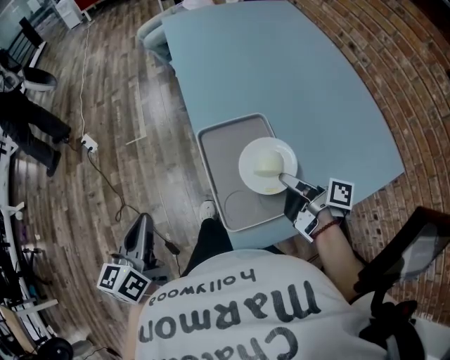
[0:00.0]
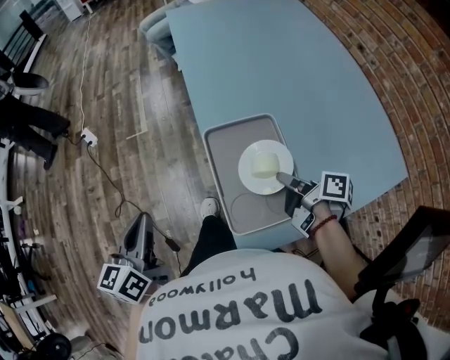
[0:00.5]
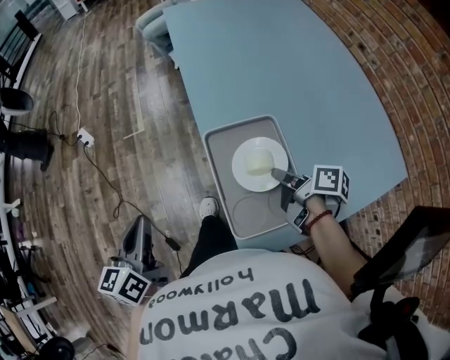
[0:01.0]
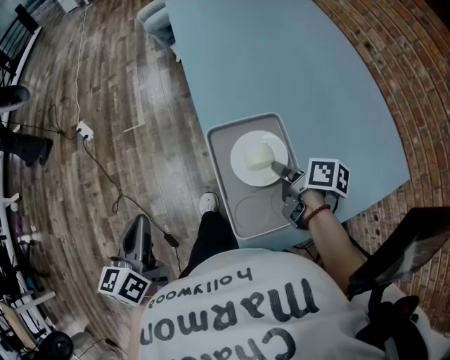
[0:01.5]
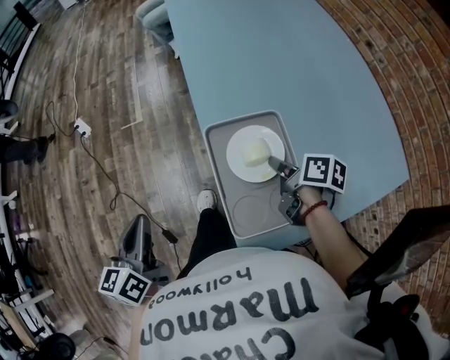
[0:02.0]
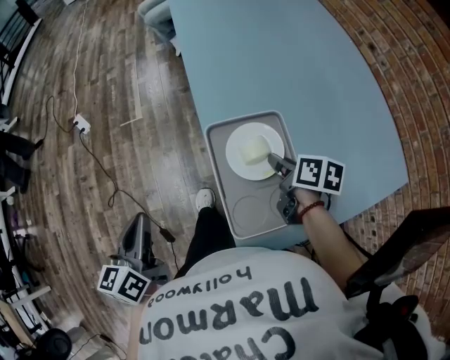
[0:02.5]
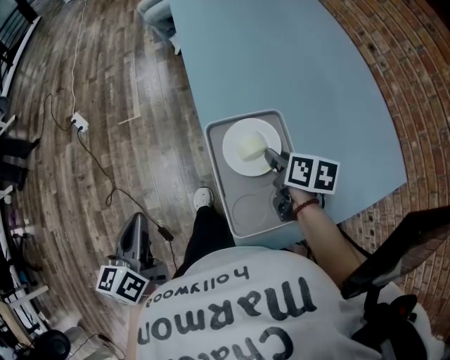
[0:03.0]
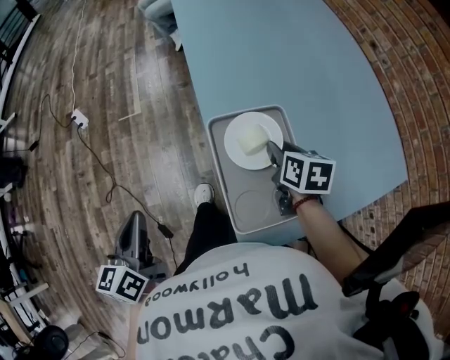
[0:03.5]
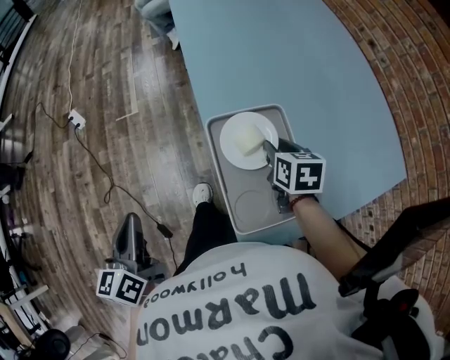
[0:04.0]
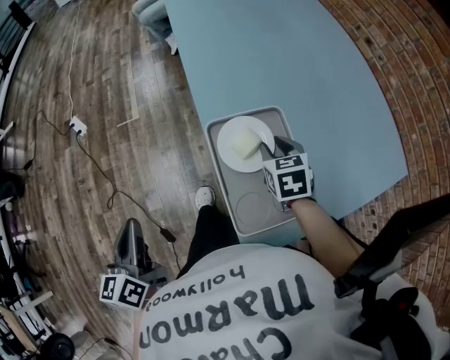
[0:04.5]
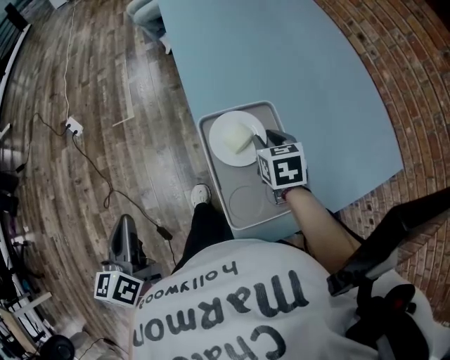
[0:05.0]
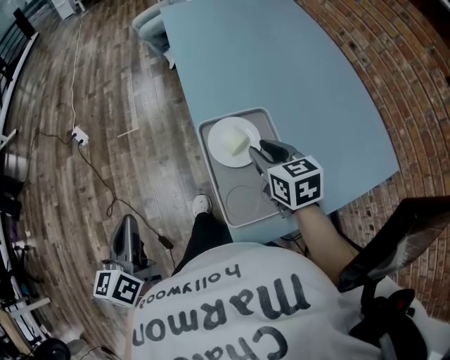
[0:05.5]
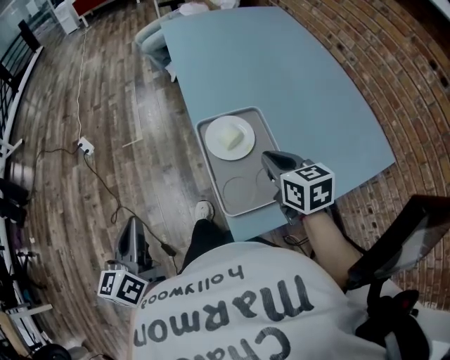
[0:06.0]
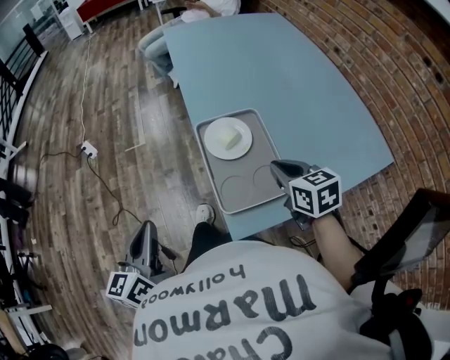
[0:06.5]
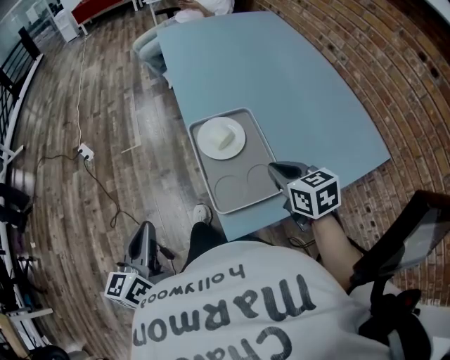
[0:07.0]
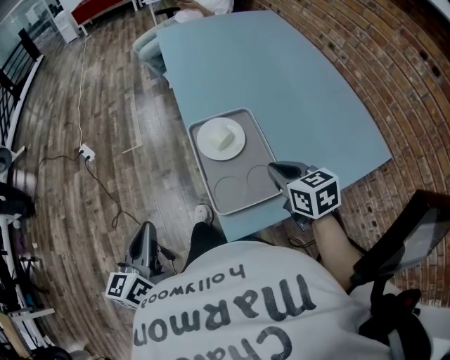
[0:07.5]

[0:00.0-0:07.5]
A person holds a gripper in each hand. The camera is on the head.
0:00.0 to 0:02.0: The left gripper moves about 5 cm; the right gripper shifts some 10 cm forward, and rotates some 30 degrees.
0:02.0 to 0:04.0: The right gripper turns by roughly 40 degrees.
0:04.0 to 0:05.5: The right gripper is displaced upward by some 10 cm, and changes its angle by roughly 20 degrees.
0:05.5 to 0:07.5: Both grippers move backward and to the right, some 10 cm. The right gripper closes up.

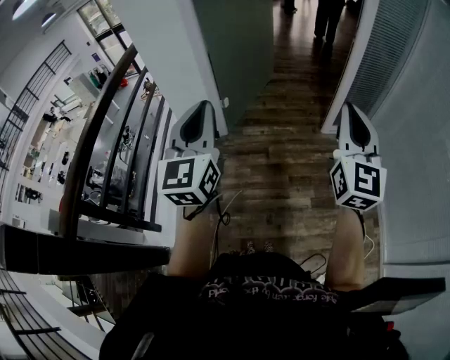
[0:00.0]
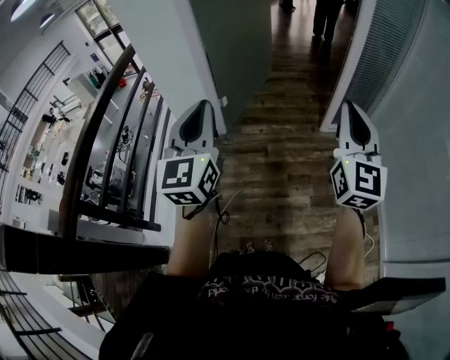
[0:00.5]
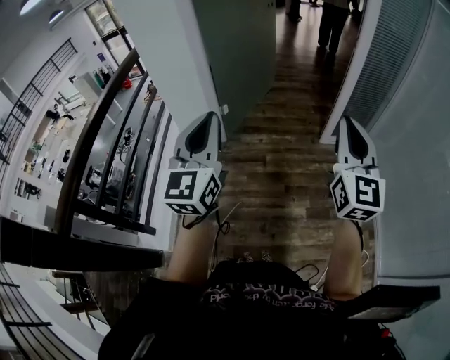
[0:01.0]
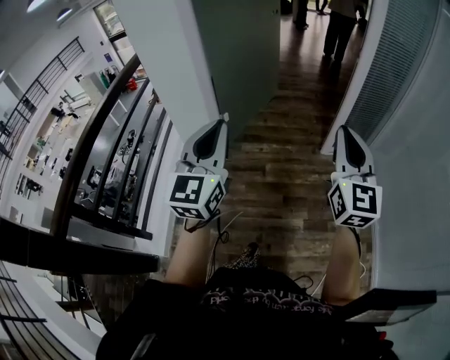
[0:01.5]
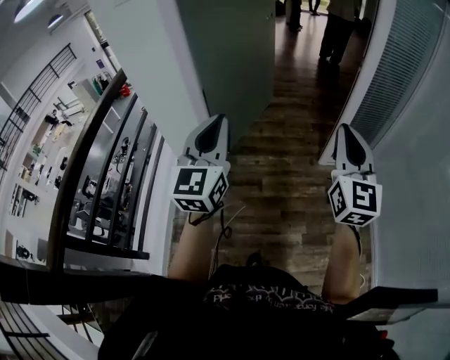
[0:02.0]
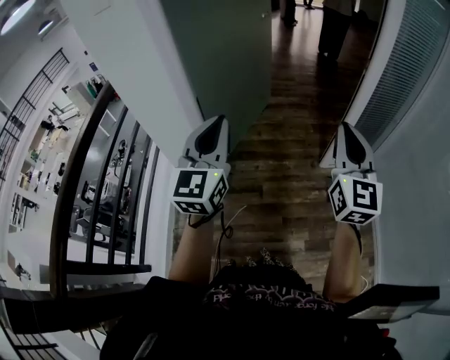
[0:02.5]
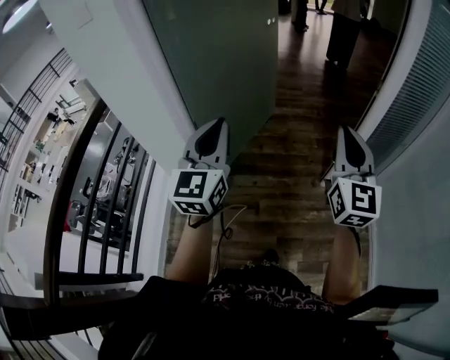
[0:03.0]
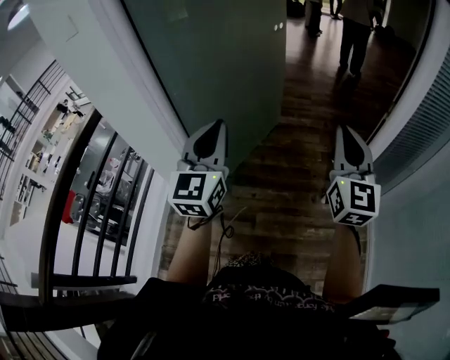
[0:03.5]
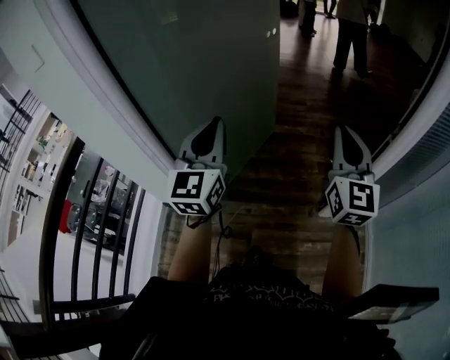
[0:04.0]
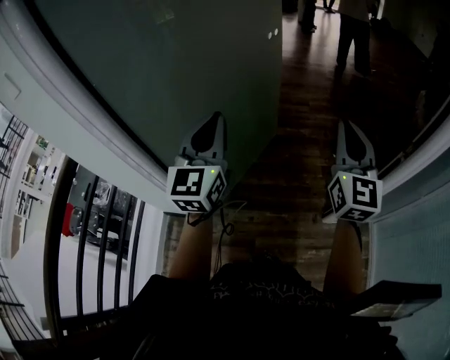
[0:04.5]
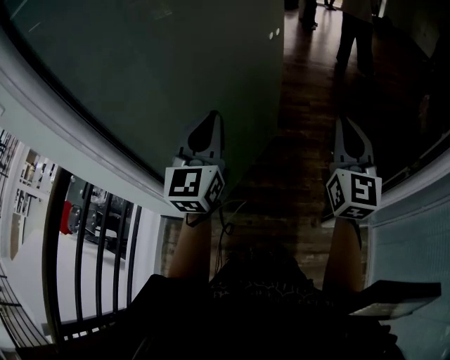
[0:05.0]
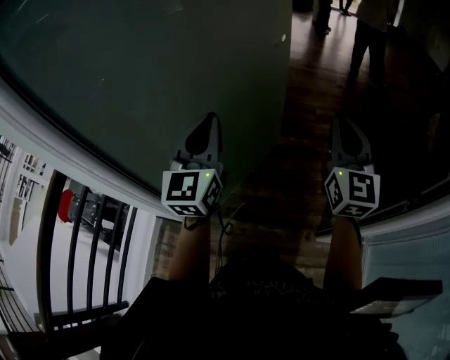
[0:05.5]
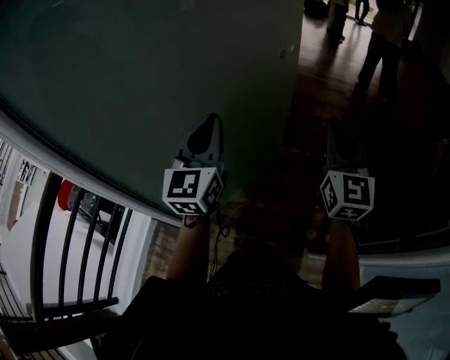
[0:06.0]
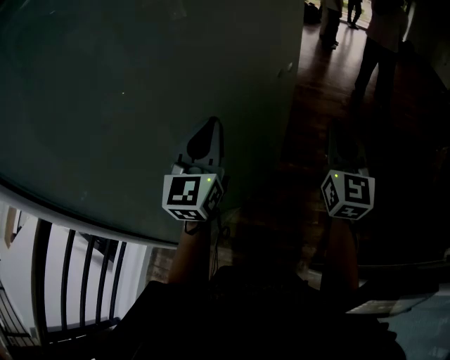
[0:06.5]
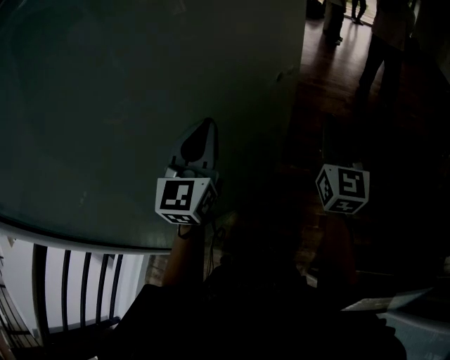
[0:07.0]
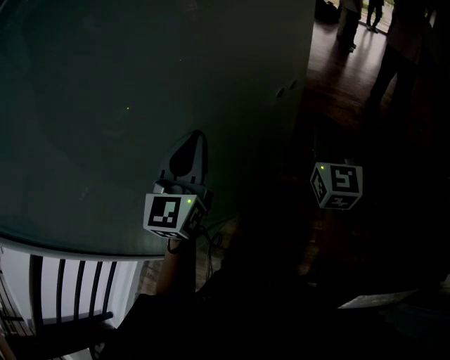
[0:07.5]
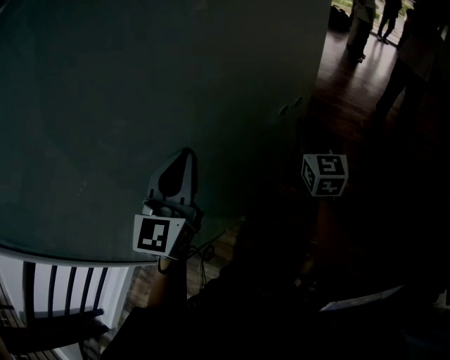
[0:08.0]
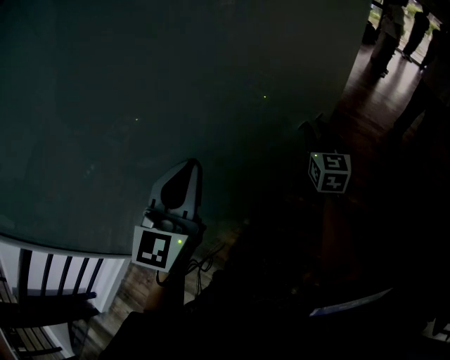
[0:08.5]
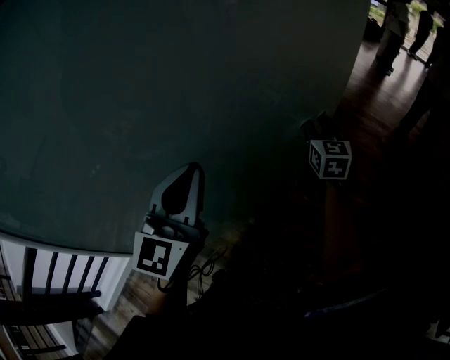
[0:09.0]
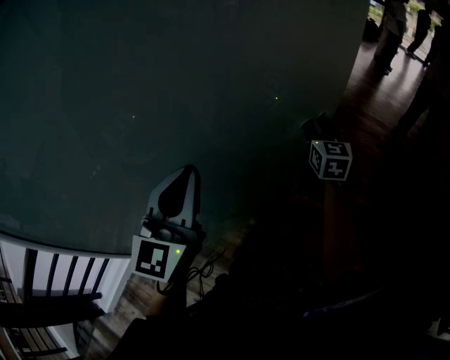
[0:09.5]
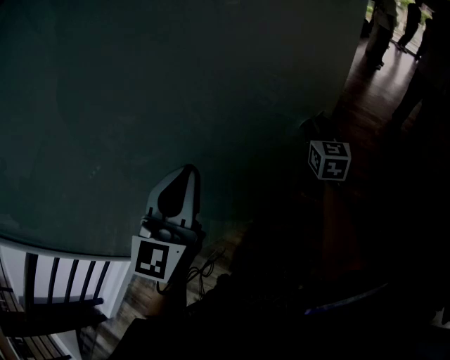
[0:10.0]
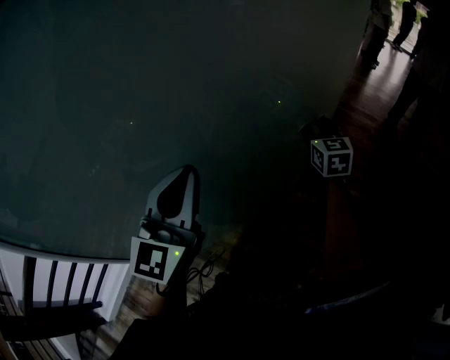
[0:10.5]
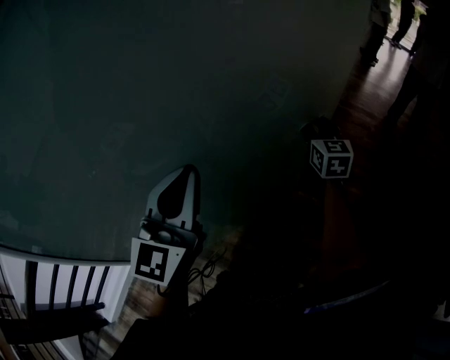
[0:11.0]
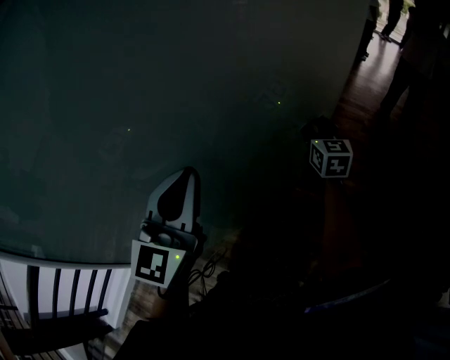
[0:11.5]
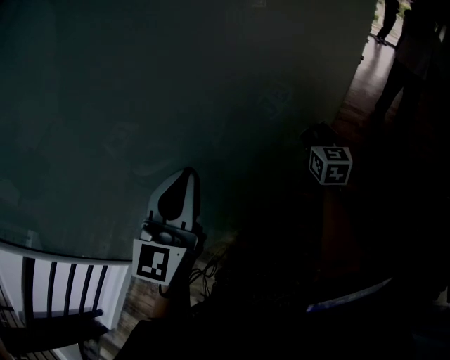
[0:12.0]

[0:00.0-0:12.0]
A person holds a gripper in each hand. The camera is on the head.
0:00.0 to 0:02.0: Both grippers move forward, about 15 cm.
0:02.0 to 0:04.0: Both grippers are carried forward, roughly 50 cm.
0:04.0 to 0:06.0: The two grippers go roughly 25 cm forward.
0:06.0 to 0:08.0: The right gripper moves forward, some 40 cm, and opens. The left gripper is displaced forward by roughly 25 cm.
0:08.0 to 0:10.0: The right gripper heads forward and downward, covering approximately 10 cm.
0:10.0 to 0:12.0: The right gripper travels backward by roughly 5 cm.

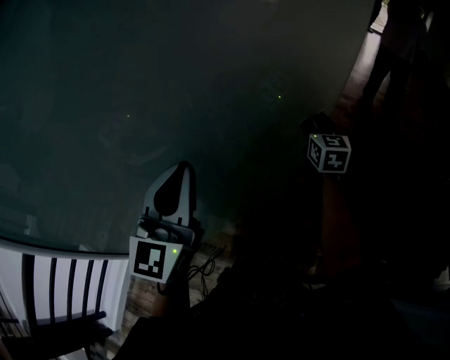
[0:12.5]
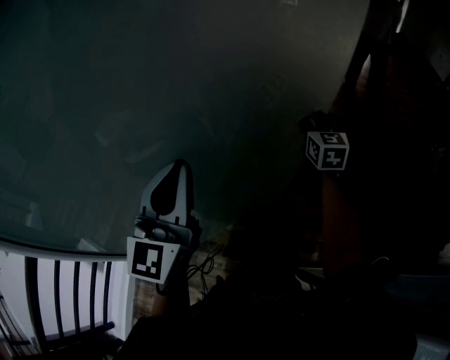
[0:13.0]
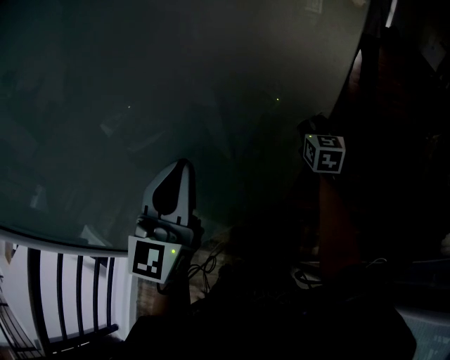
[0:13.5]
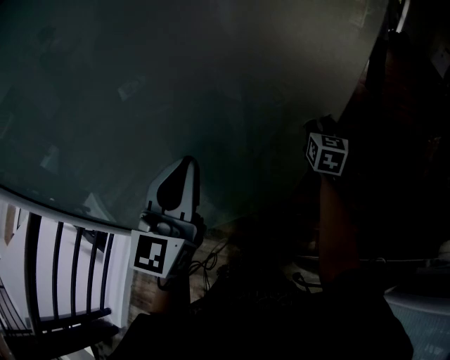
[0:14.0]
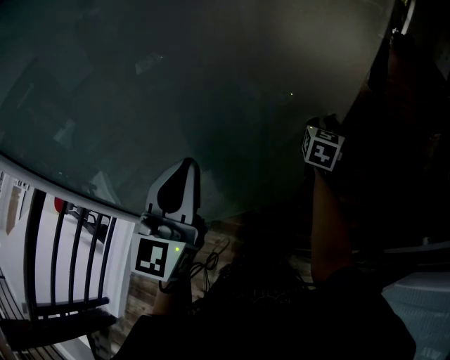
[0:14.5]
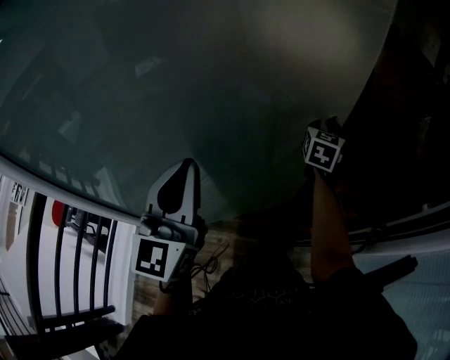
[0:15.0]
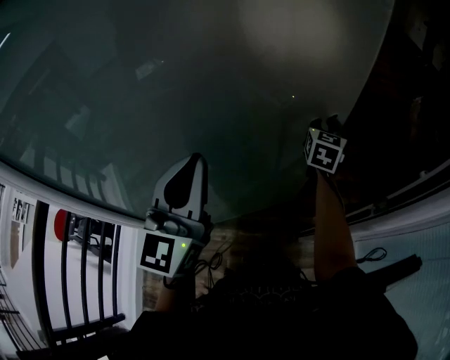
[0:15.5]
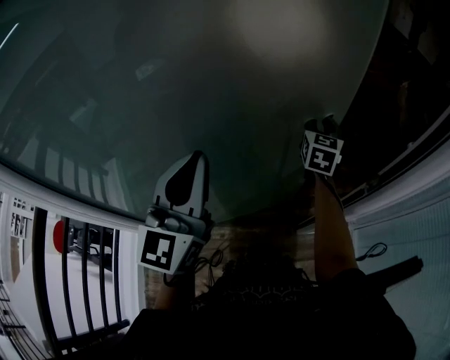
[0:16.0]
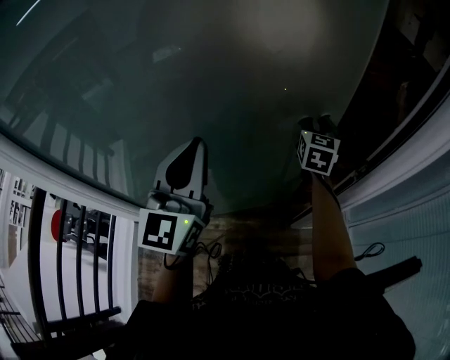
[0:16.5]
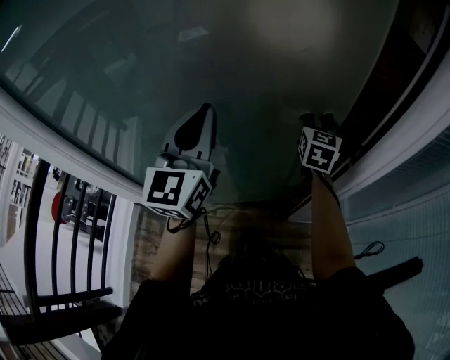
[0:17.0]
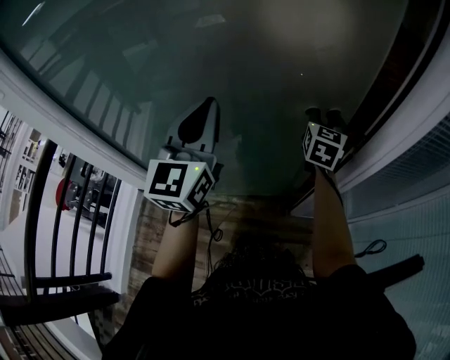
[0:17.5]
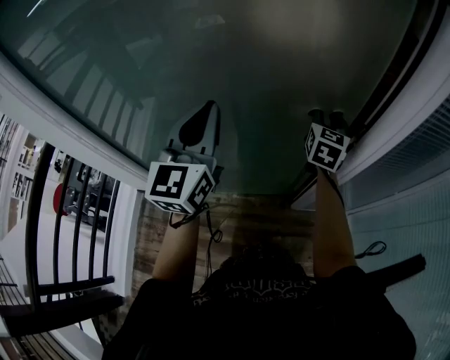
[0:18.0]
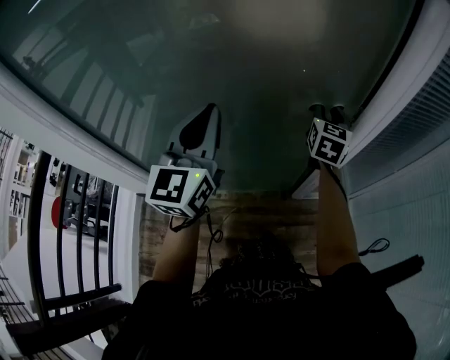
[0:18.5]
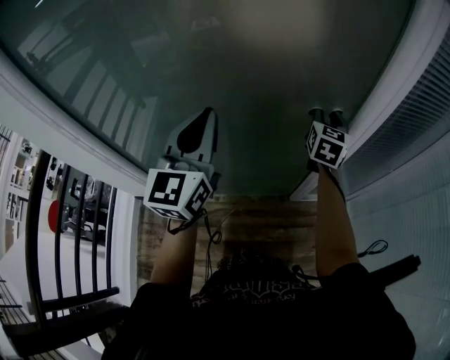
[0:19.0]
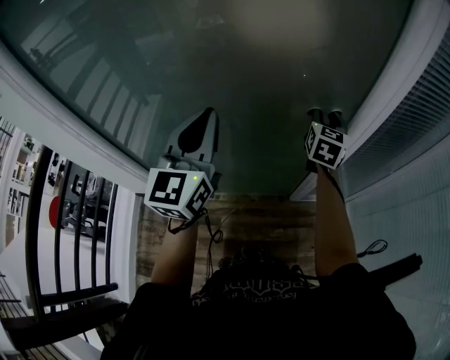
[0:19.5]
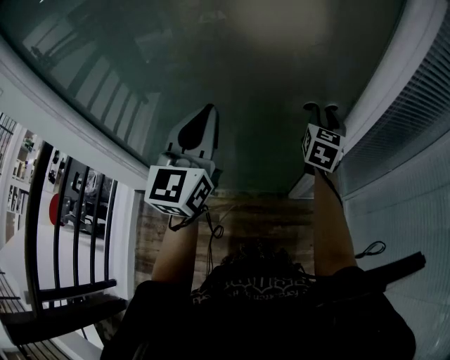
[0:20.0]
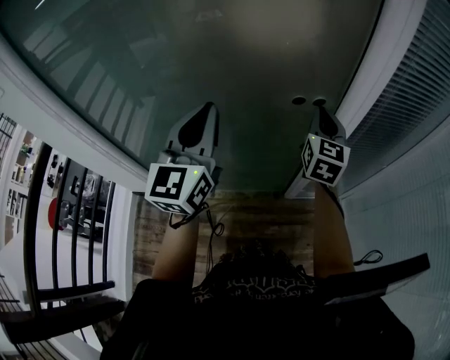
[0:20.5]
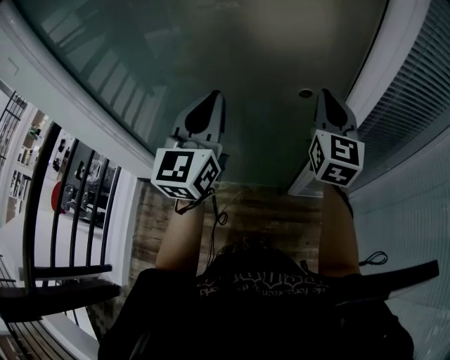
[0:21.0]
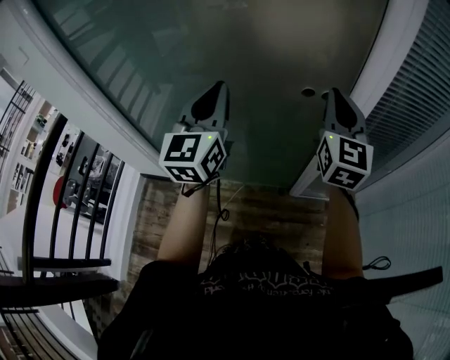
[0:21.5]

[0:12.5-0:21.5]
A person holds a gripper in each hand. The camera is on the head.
0:12.5 to 0:14.5: The right gripper is displaced backward and to the right by roughly 25 cm, and swivels approximately 20 degrees; the left gripper heads backward, covering approximately 25 cm.
0:14.5 to 0:17.0: The right gripper travels backward and to the right by approximately 25 cm, while the left gripper travels backward and to the right by approximately 15 cm.
0:17.0 to 0:19.5: Both grippers travel together backward, some 15 cm.
0:19.5 to 0:21.5: The right gripper goes about 20 cm backward and upward, rotates roughly 30 degrees, and closes up. The left gripper moves some 5 cm.
